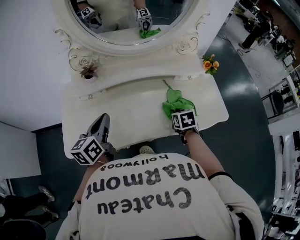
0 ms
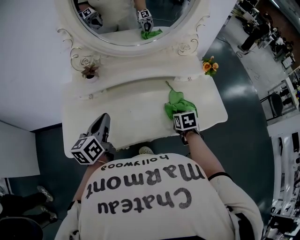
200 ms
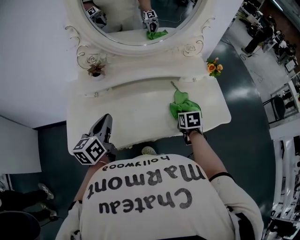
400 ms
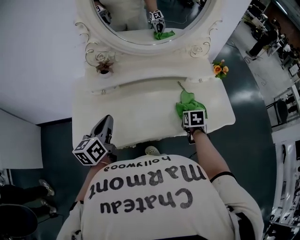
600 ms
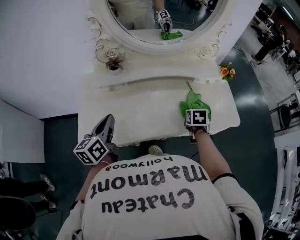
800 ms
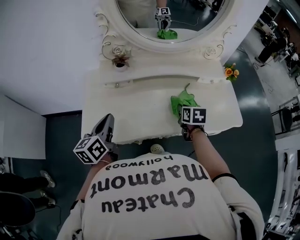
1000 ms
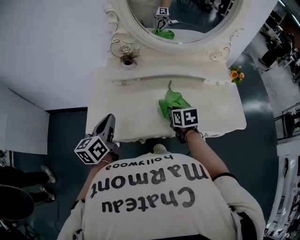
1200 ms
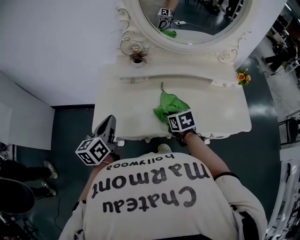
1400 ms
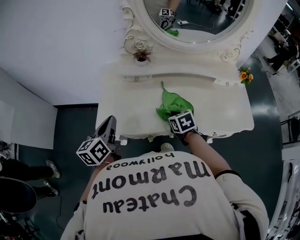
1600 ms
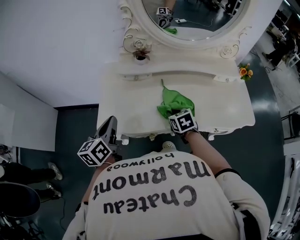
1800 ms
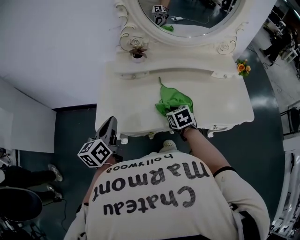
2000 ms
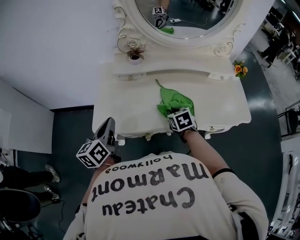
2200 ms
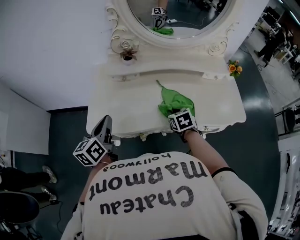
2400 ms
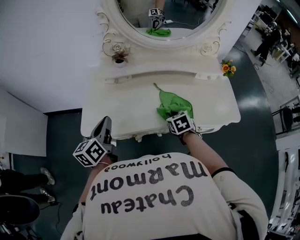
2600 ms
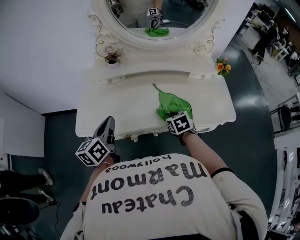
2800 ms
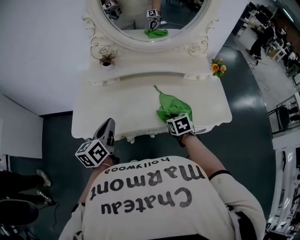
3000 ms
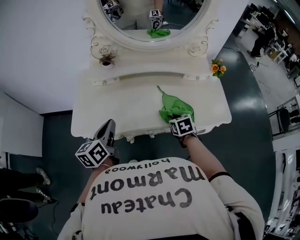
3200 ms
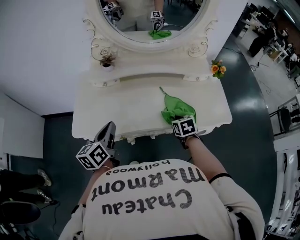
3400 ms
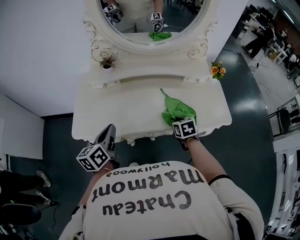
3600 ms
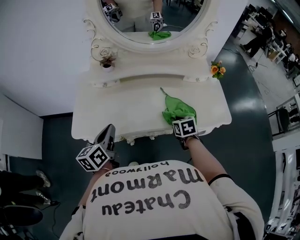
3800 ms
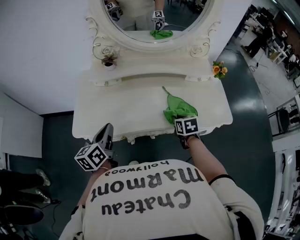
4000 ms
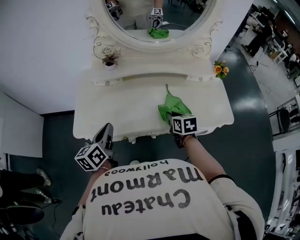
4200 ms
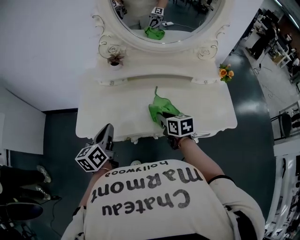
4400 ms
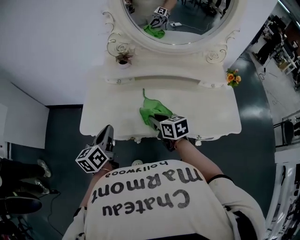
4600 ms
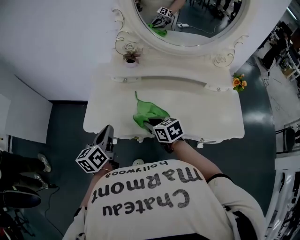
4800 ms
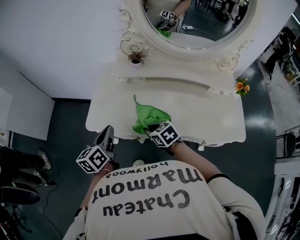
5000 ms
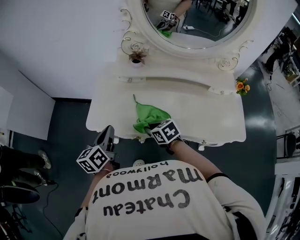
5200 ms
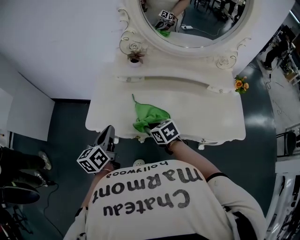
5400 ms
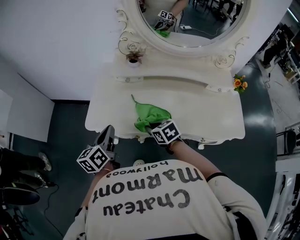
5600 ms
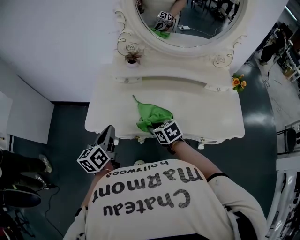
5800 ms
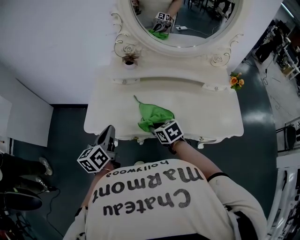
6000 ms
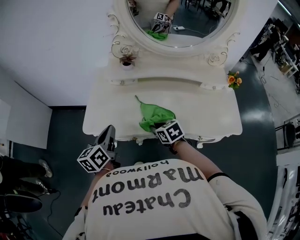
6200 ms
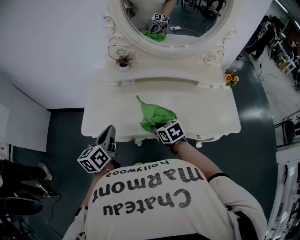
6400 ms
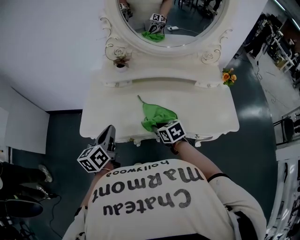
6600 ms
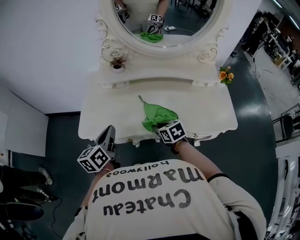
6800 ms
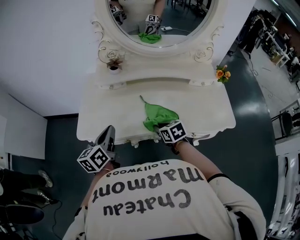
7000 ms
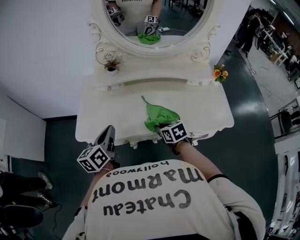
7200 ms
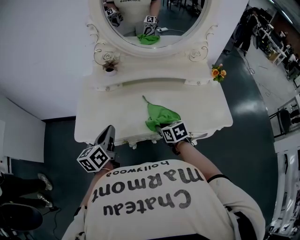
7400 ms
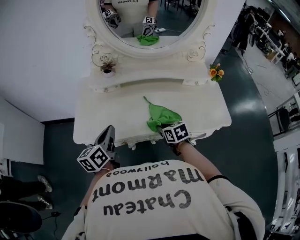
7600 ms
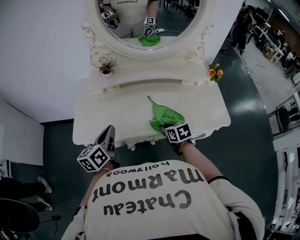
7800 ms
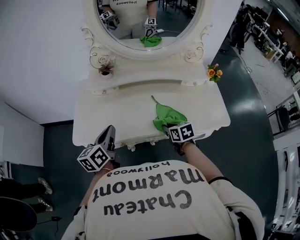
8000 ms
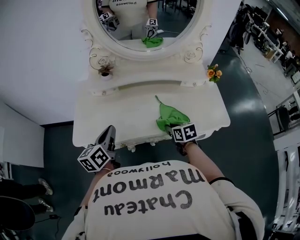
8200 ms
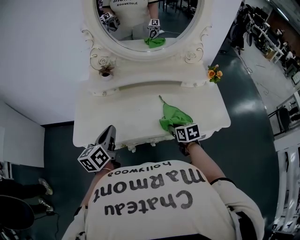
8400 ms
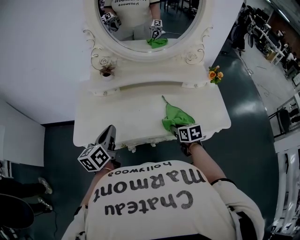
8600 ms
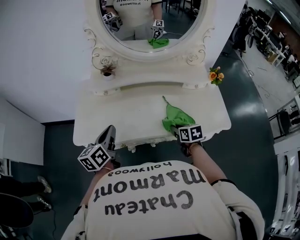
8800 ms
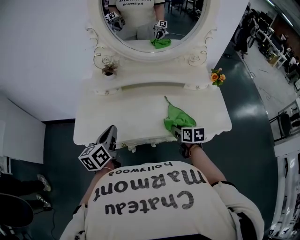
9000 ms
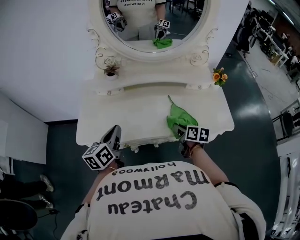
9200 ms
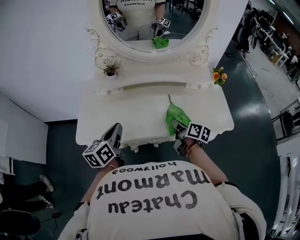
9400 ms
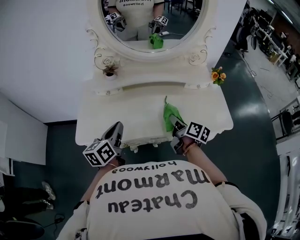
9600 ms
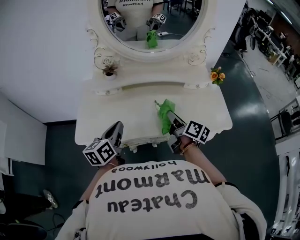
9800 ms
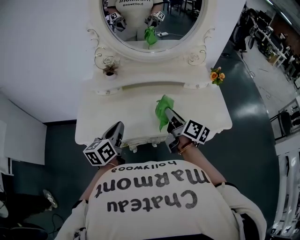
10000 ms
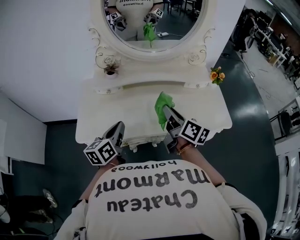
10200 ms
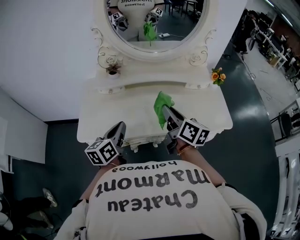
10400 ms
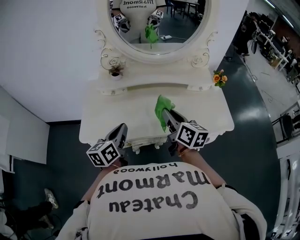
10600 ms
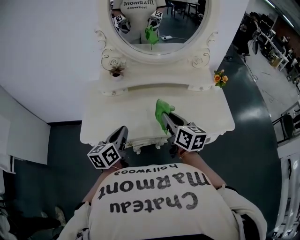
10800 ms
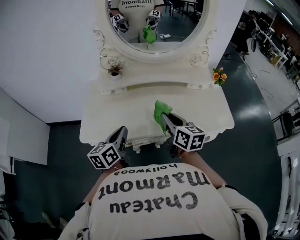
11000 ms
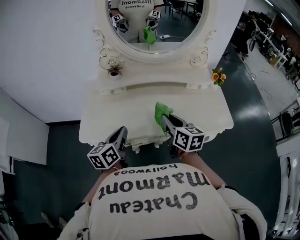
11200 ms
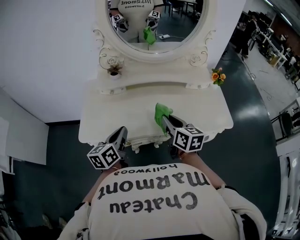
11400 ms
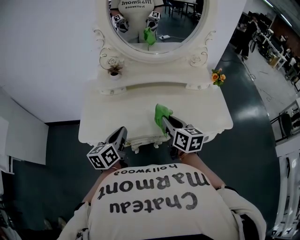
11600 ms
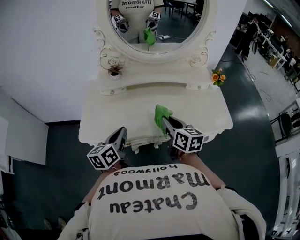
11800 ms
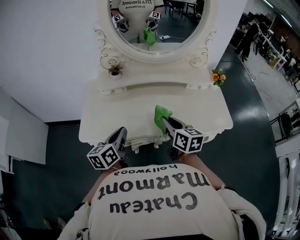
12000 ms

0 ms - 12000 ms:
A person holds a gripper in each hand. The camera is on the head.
0 ms - 1600 ms: The right gripper shifts by about 25 cm, and rotates approximately 20 degrees. The left gripper ends up roughly 20 cm from where it was.
1600 ms - 3000 ms: Both grippers travel together to the right, about 15 cm.
3000 ms - 4400 ms: The right gripper is displaced to the left and upward by some 10 cm, and turns by some 20 degrees.
4400 ms - 6000 ms: The right gripper shifts approximately 10 cm to the left, and rotates about 30 degrees.
6000 ms - 7600 ms: The right gripper goes roughly 10 cm to the right. The left gripper travels to the right by approximately 10 cm.
7600 ms - 9000 ms: The right gripper heads to the right, covering some 10 cm.
9000 ms - 10400 ms: The right gripper moves upward, some 20 cm, and tilts its fingers approximately 30 degrees upward.
10400 ms - 12000 ms: The right gripper ends up some 5 cm from where it was.

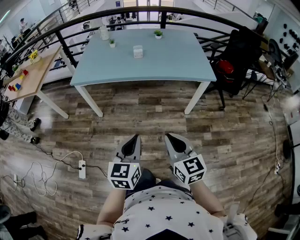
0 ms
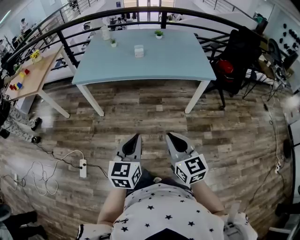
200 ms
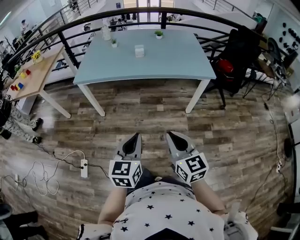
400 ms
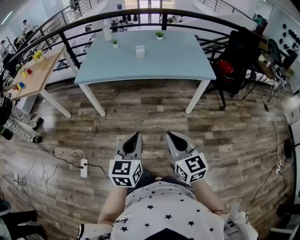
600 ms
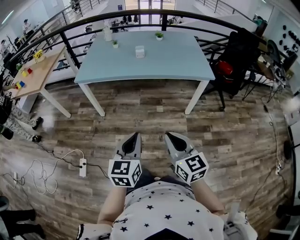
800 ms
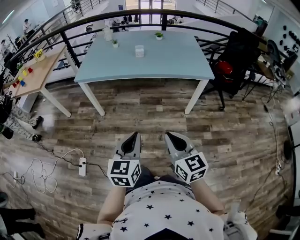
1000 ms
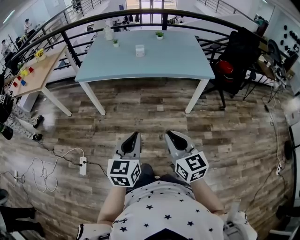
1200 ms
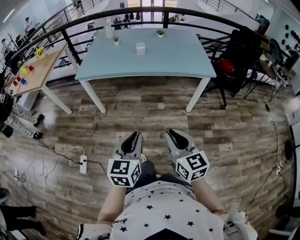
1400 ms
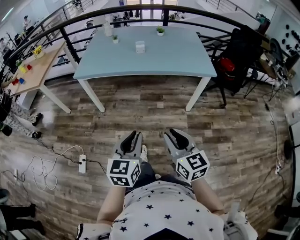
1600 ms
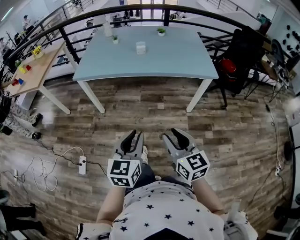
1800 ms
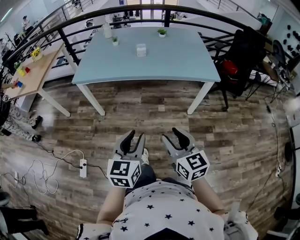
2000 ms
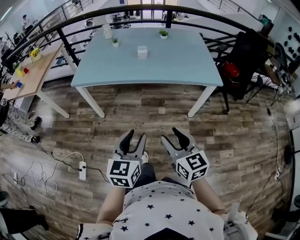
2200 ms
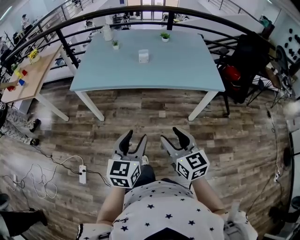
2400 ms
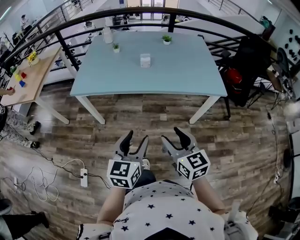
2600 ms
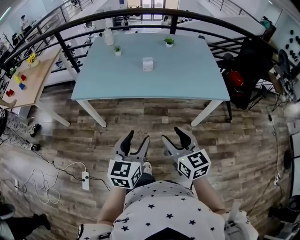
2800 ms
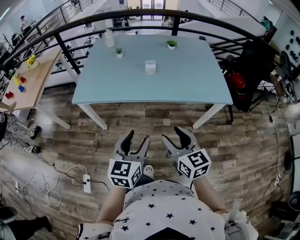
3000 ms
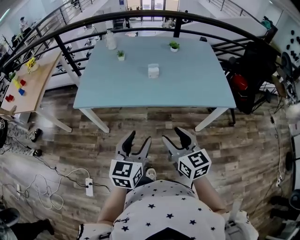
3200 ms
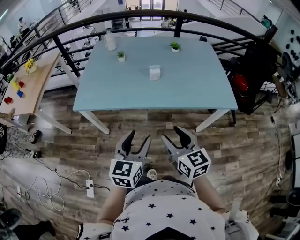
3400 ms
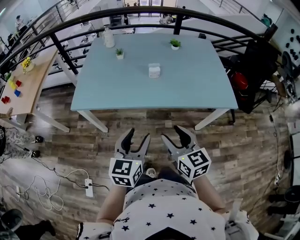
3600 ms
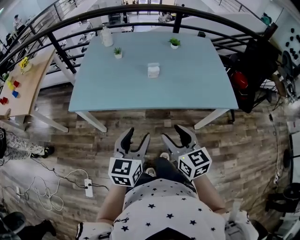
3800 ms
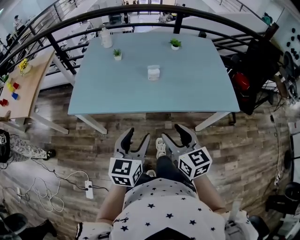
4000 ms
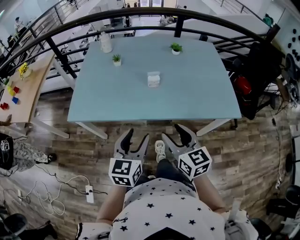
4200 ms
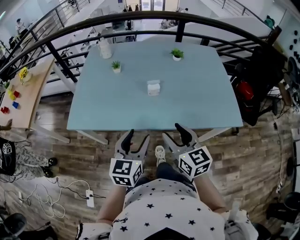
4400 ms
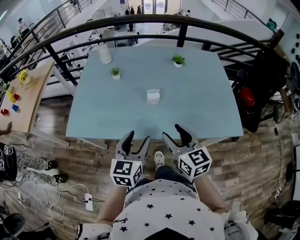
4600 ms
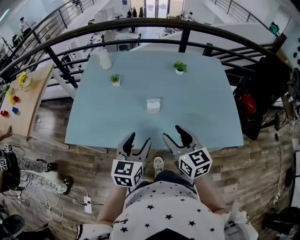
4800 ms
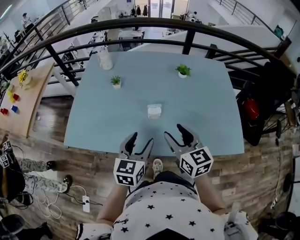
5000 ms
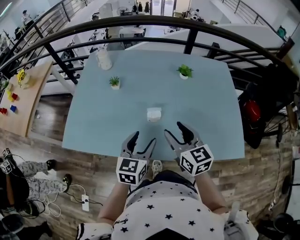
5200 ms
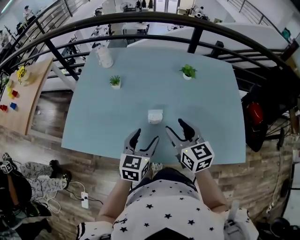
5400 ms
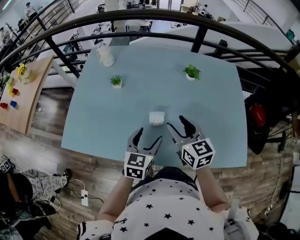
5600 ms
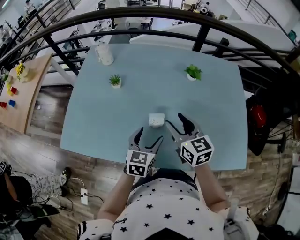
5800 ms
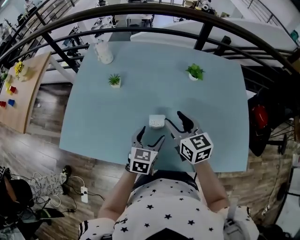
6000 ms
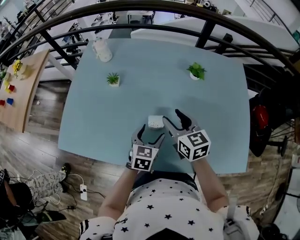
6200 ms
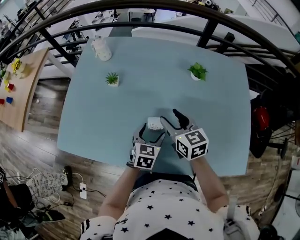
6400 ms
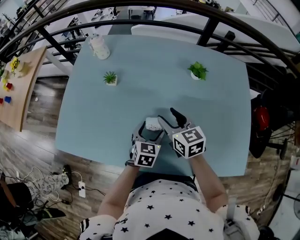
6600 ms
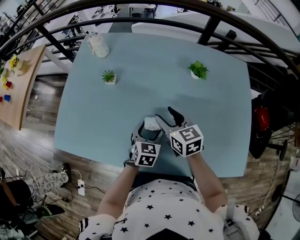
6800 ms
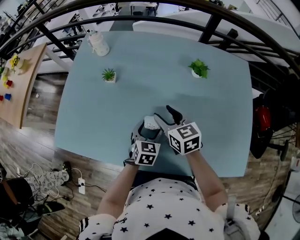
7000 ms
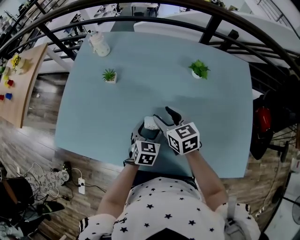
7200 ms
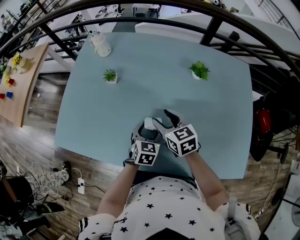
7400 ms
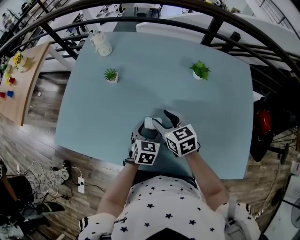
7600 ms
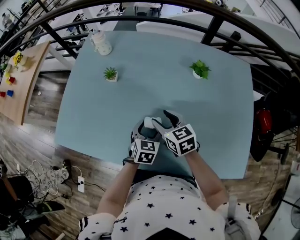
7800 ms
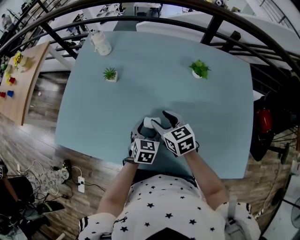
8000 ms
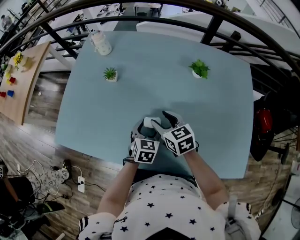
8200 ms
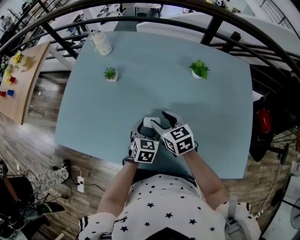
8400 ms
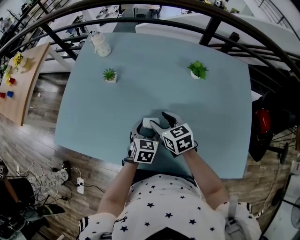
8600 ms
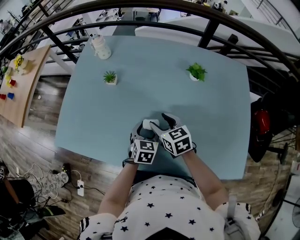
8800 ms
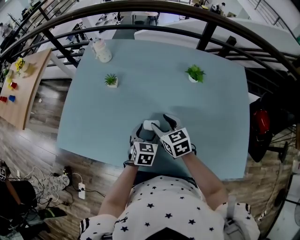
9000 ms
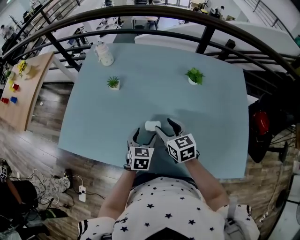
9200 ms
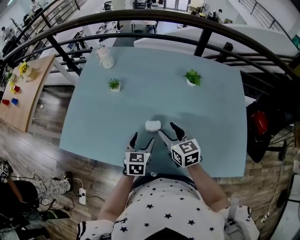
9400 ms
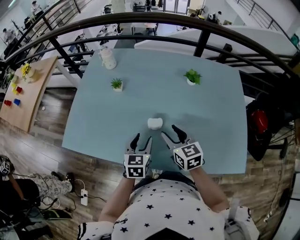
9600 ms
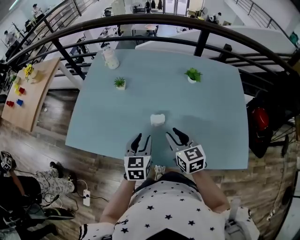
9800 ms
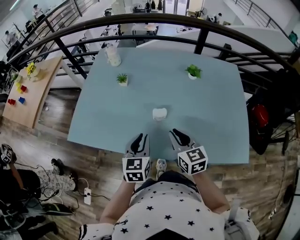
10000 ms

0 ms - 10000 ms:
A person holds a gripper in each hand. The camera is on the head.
0 ms - 1400 ms: Both grippers travel together backward, roughly 5 cm.
1400 ms - 2800 ms: Both grippers travel together forward, some 25 cm. The right gripper opens its fingers. The left gripper opens.
2800 ms - 4200 ms: The two grippers go some 20 cm forward.
4200 ms - 5800 ms: The two grippers go about 30 cm forward.
5800 ms - 7200 ms: The grippers both shift downward and forward by some 10 cm.
7200 ms - 8600 ms: The grippers move only a little.
8600 ms - 10000 ms: The left gripper moves upward, backward and to the left, roughly 20 cm, and closes its fingers; the right gripper moves backward and upward, some 20 cm, and closes.

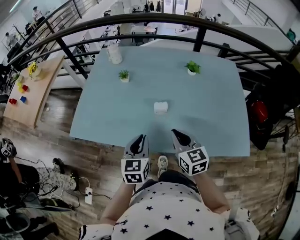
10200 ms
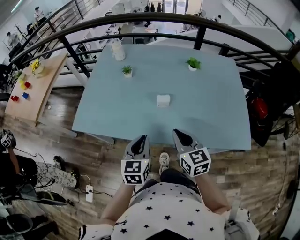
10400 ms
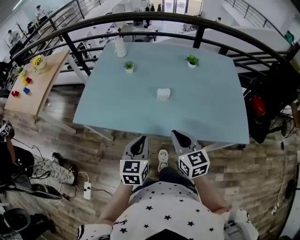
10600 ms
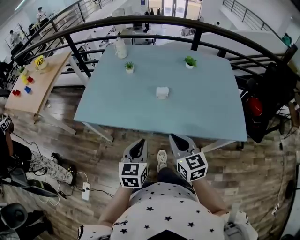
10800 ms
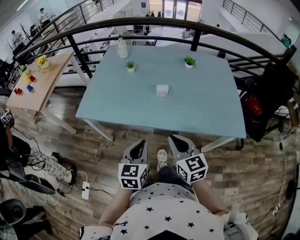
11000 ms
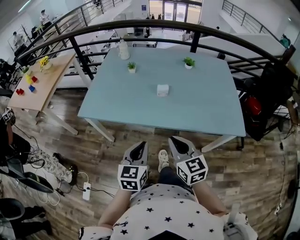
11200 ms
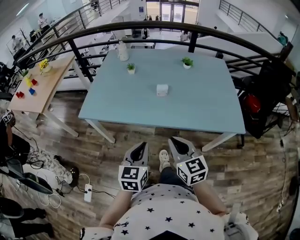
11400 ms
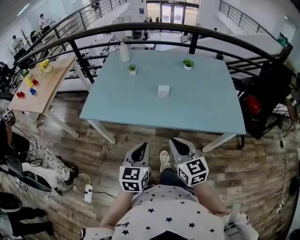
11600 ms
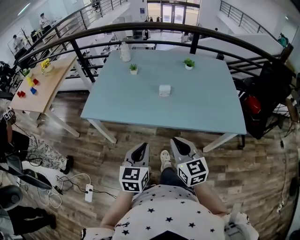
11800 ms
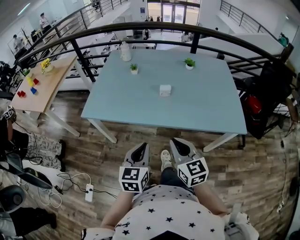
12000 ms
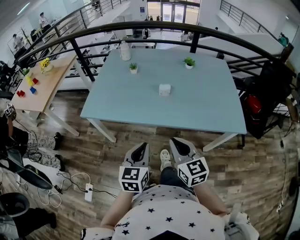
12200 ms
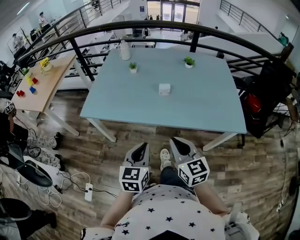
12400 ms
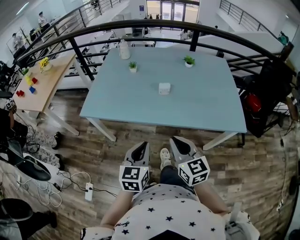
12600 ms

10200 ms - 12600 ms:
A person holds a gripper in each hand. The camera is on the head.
10200 ms - 11400 ms: The two grippers go some 20 cm backward.
11400 ms - 12600 ms: The grippers move only a little.
